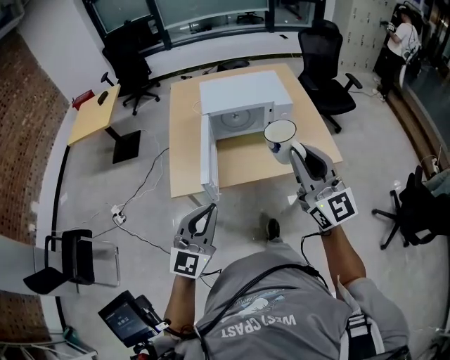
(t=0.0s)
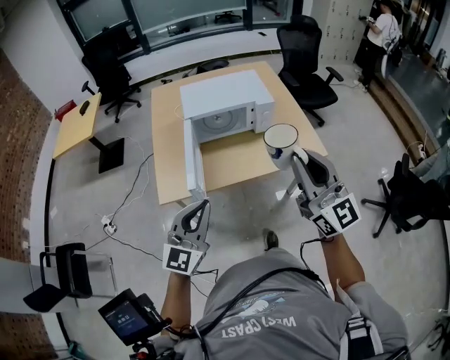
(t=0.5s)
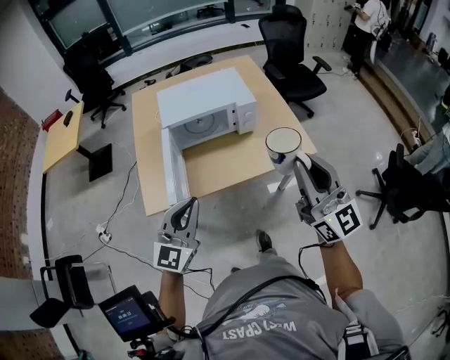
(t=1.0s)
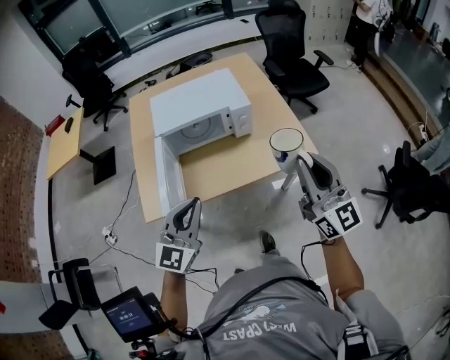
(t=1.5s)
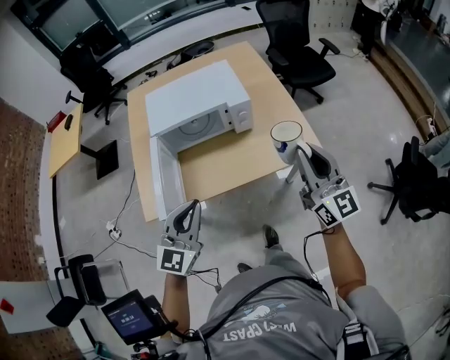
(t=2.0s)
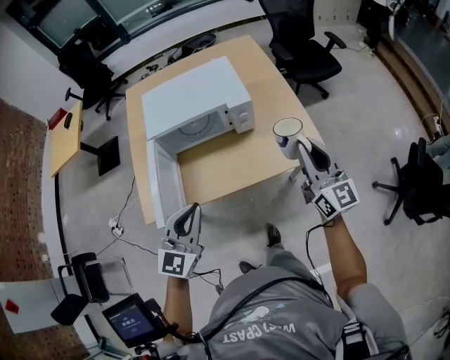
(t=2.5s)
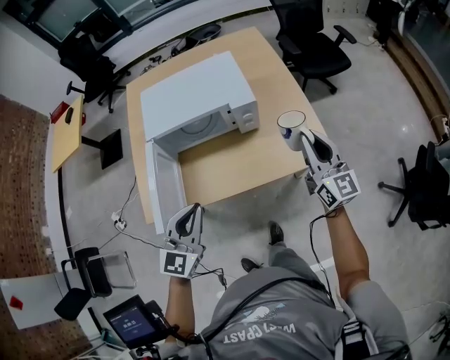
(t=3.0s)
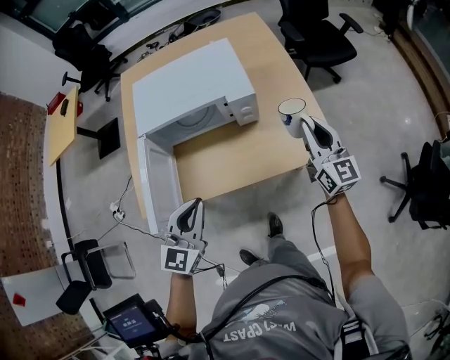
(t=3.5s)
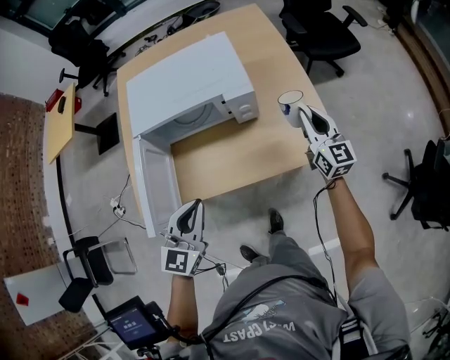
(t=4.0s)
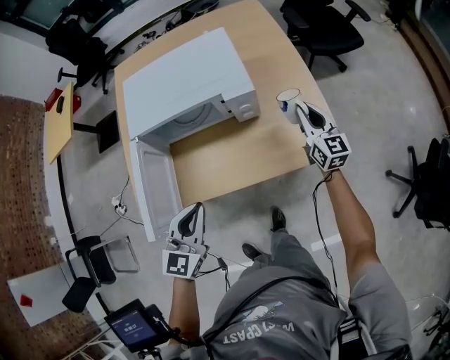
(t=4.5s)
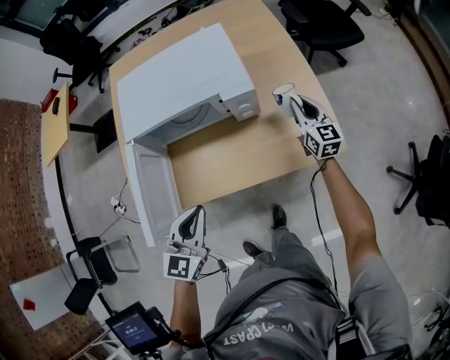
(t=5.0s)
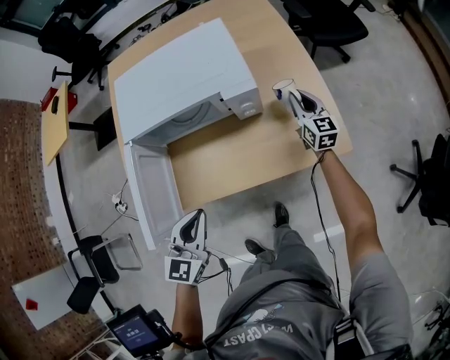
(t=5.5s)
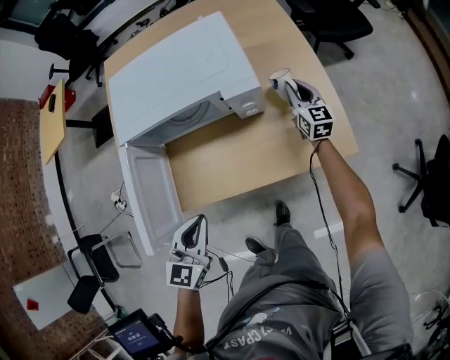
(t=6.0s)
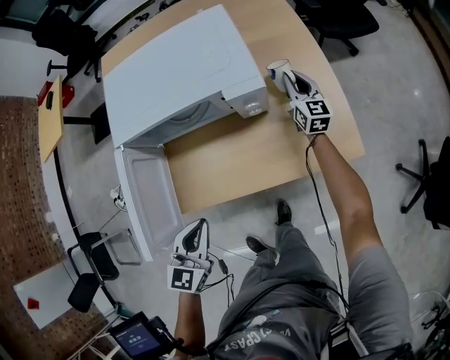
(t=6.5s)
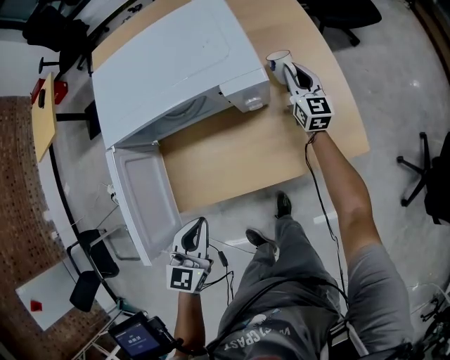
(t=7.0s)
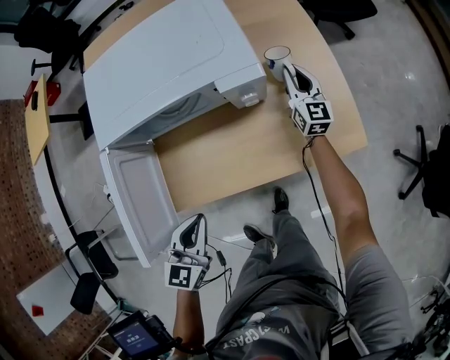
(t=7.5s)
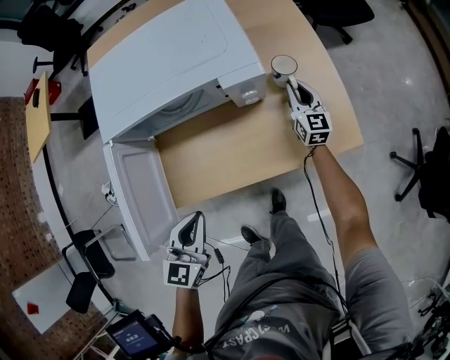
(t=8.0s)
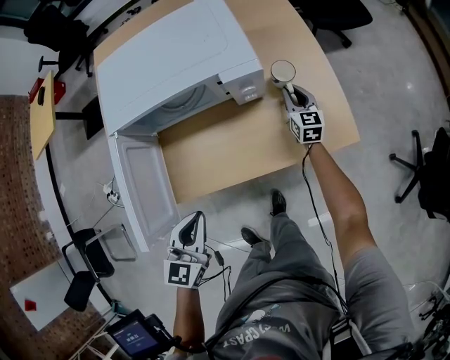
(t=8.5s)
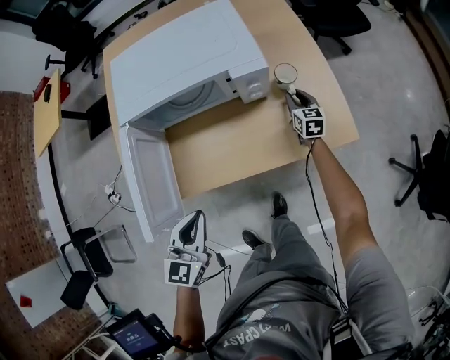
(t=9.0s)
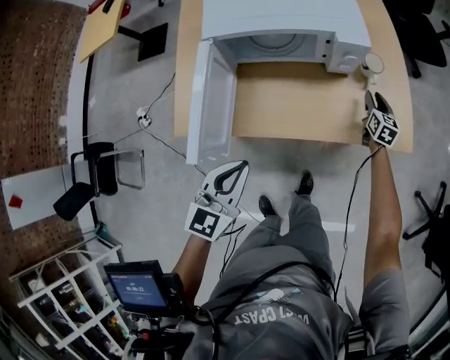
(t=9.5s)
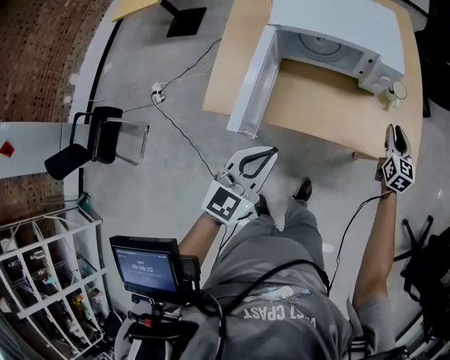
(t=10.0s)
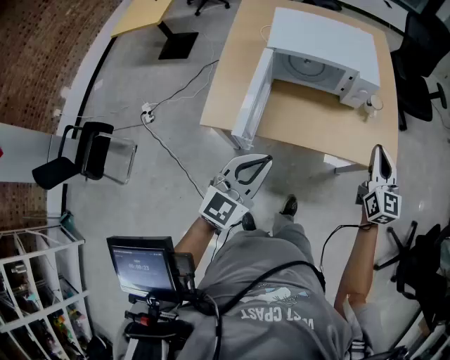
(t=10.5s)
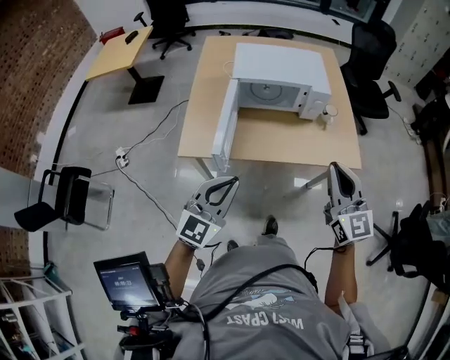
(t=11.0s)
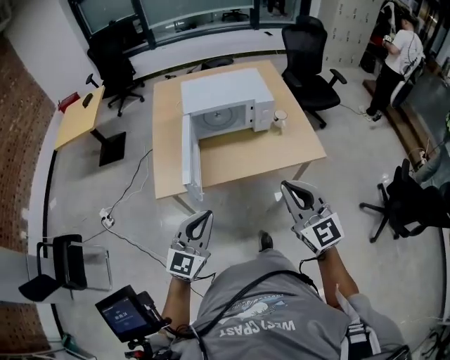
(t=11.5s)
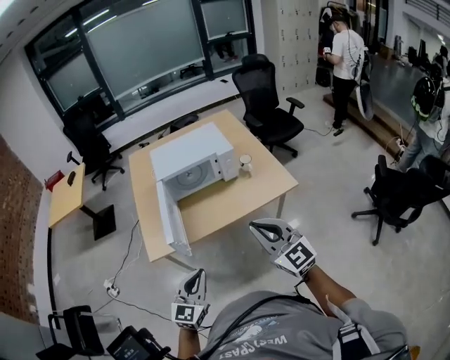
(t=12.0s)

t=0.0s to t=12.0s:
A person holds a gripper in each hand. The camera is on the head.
t=0.0s to t=2.0s: The right gripper goes about 25 cm to the right, forward and downward. Meanwhile the left gripper goes about 20 cm forward and to the right.
t=2.0s to t=4.0s: The right gripper moves forward and downward, some 35 cm, while the left gripper shifts approximately 15 cm forward and downward.
t=4.0s to t=6.0s: The left gripper is displaced downward by about 10 cm; the right gripper moves downward and forward, approximately 20 cm.
t=6.0s to t=8.0s: The right gripper travels downward by about 5 cm.
t=8.0s to t=10.0s: The right gripper is displaced backward and upward by about 25 cm; the left gripper moves backward, upward and to the left, roughly 20 cm.
t=10.0s to t=12.0s: The right gripper moves backward and upward, some 50 cm, swivels about 30 degrees, and closes, while the left gripper shifts approximately 20 cm backward.

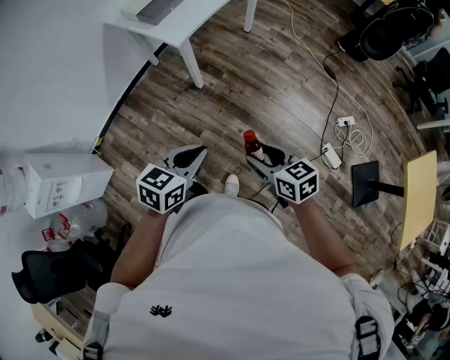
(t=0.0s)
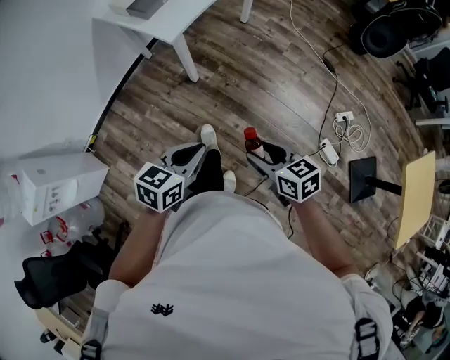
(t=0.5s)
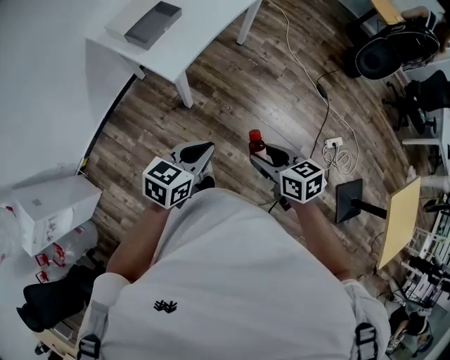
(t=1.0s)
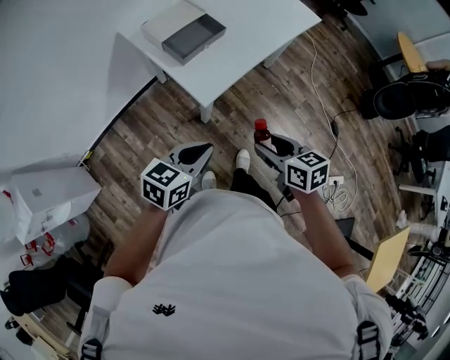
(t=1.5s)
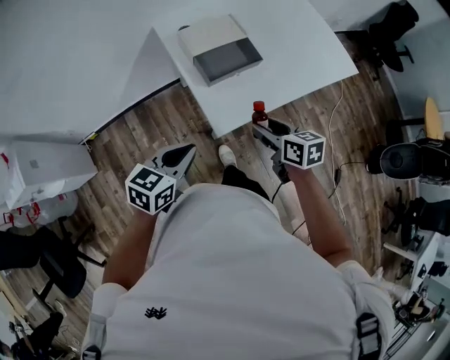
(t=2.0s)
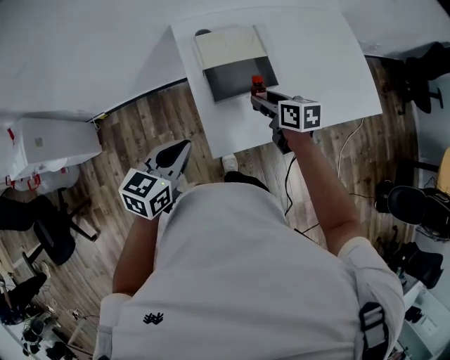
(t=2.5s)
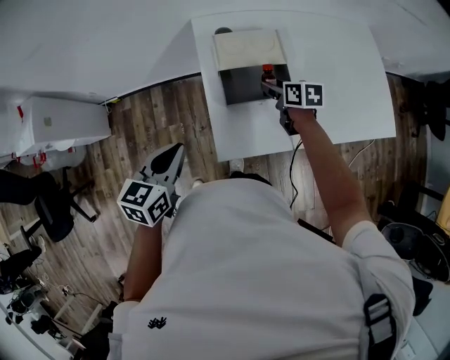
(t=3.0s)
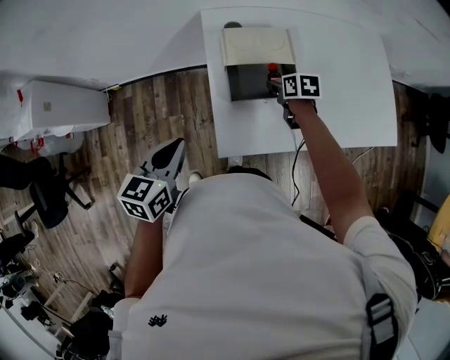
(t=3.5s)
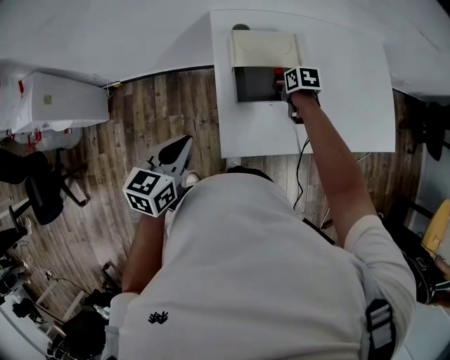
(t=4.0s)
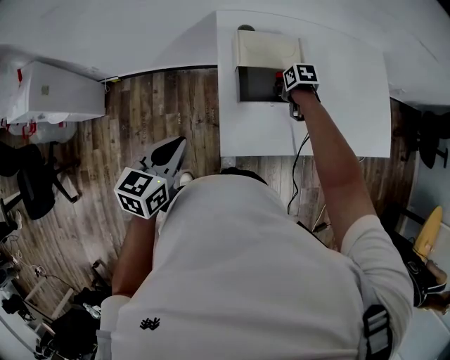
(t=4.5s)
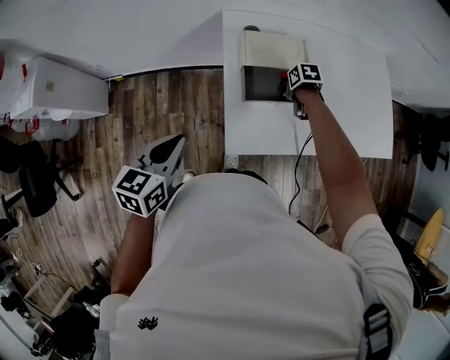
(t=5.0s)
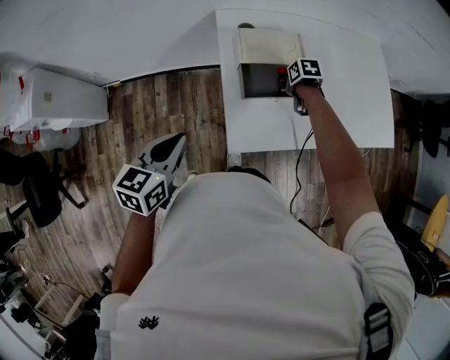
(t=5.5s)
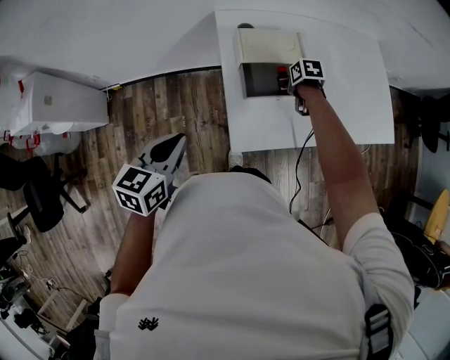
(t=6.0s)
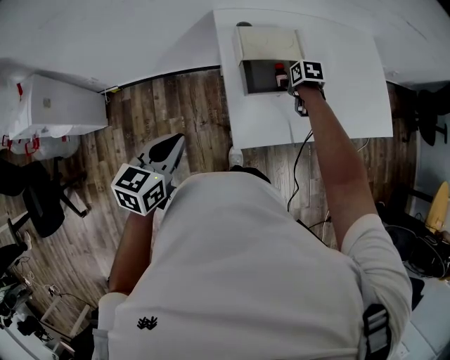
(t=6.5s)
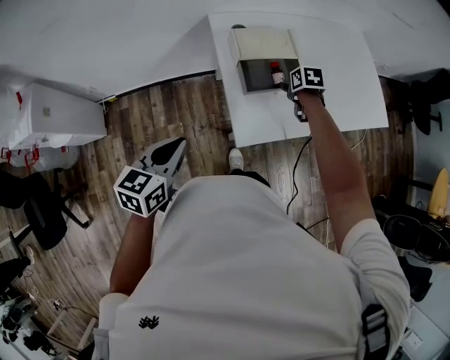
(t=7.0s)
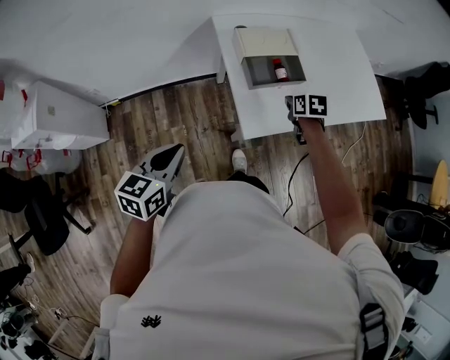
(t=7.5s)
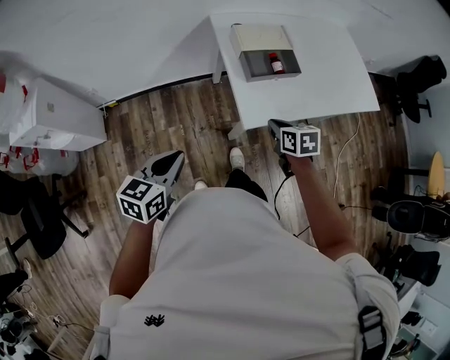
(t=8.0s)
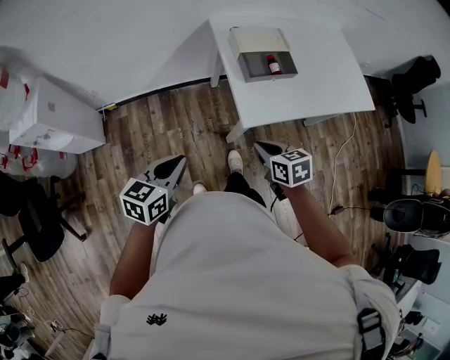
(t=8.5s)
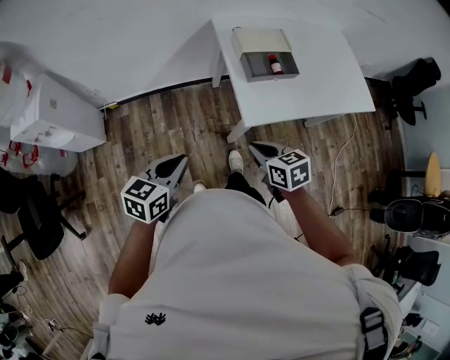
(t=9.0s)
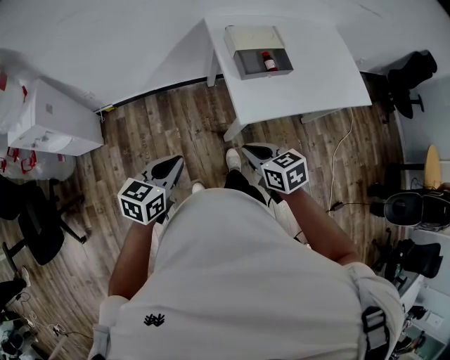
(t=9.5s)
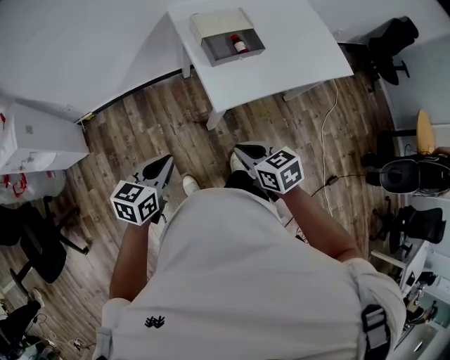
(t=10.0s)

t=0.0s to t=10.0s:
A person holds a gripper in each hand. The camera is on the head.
t=0.0s to t=2.0s: The left gripper changes place by some 40 cm, and turns by roughly 30 degrees. The right gripper ends up about 50 cm from where it was.
t=2.0s to t=4.0s: The right gripper shifts by approximately 35 cm, and changes its angle by roughly 30 degrees. Meanwhile the left gripper moves roughly 10 cm, and changes its angle by some 40 degrees.
t=4.0s to t=6.0s: The left gripper ends up roughly 5 cm from where it was.
t=6.0s to t=8.0s: The right gripper shifts some 25 cm backward, turns by about 30 degrees, and closes. The left gripper goes roughly 15 cm backward and to the left.
t=8.0s to t=10.0s: The left gripper changes place by about 5 cm. The right gripper heads backward and to the left, covering approximately 15 cm.

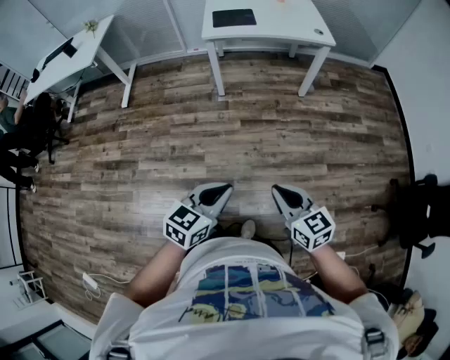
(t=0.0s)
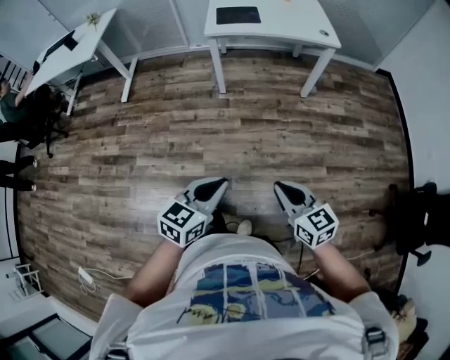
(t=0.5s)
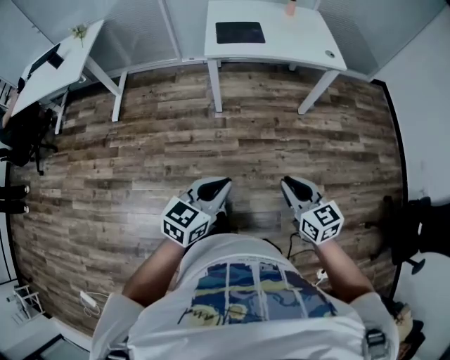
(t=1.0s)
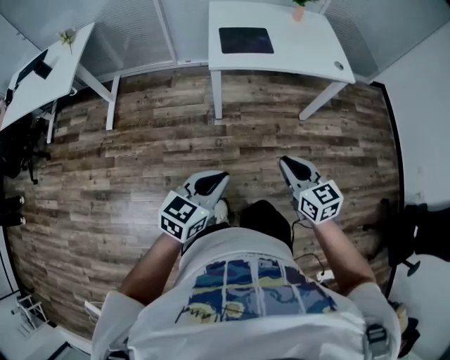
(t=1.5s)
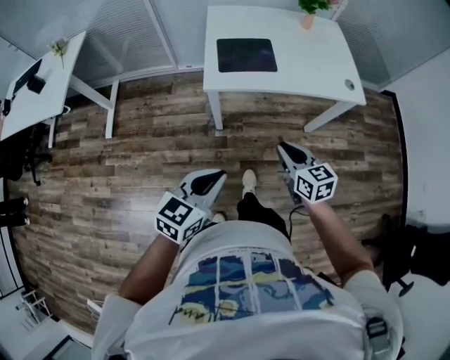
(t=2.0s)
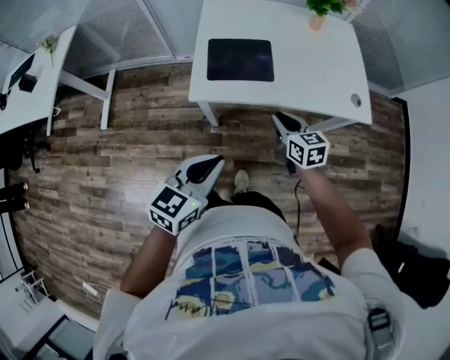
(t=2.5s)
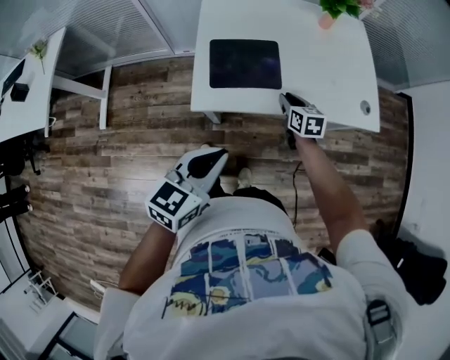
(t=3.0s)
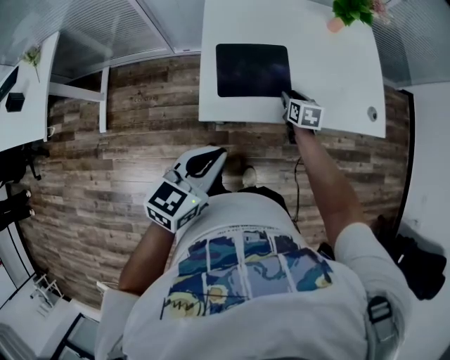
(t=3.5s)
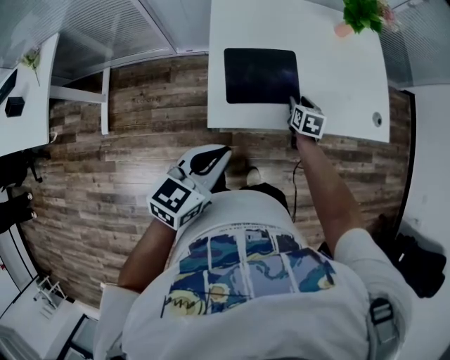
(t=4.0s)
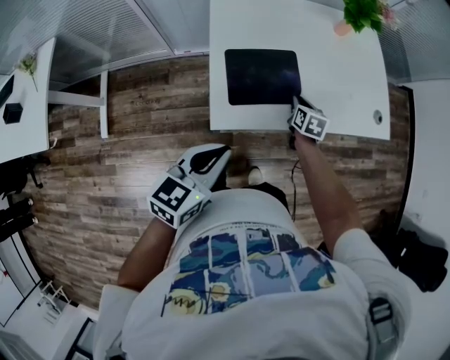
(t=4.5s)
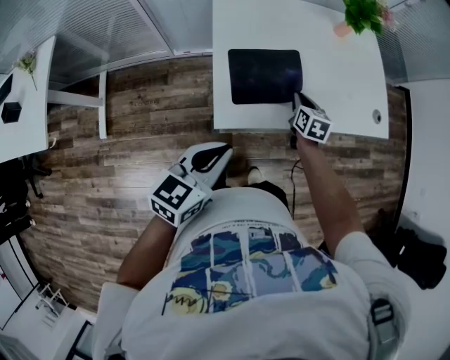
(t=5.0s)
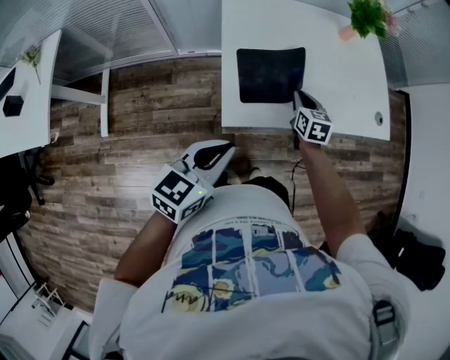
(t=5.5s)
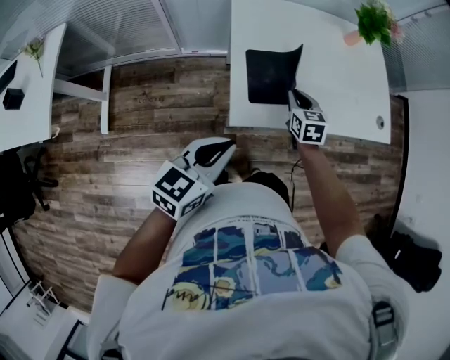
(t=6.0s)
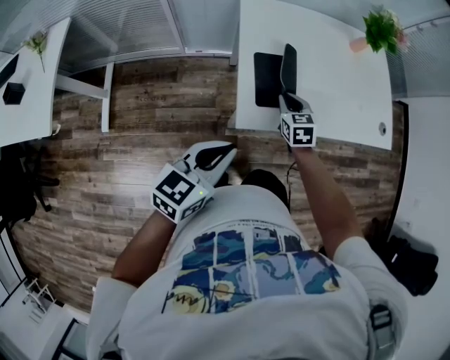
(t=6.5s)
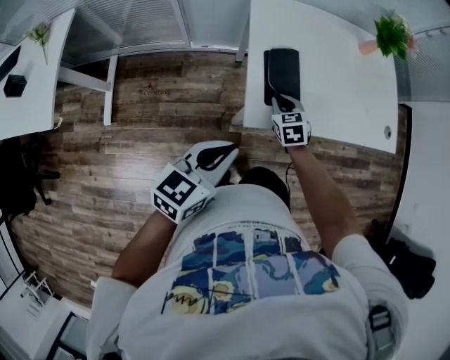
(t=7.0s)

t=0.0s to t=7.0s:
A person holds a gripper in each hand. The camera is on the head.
t=0.0s to t=2.0s: Both grippers are carried forward, roughly 60 cm.
t=2.0s to t=3.5s: The right gripper heads forward and downward, covering approximately 50 cm, rotates approximately 30 degrees, and opens, while the left gripper is displaced forward by some 30 cm.
t=3.5s to t=5.0s: The right gripper shifts by roughly 5 cm, and closes its fingers. Meanwhile the left gripper shifts approximately 5 cm to the left.
t=5.0s to t=7.0s: The right gripper is displaced to the left and backward by about 20 cm, and swivels roughly 30 degrees. The left gripper goes roughly 10 cm to the left.
